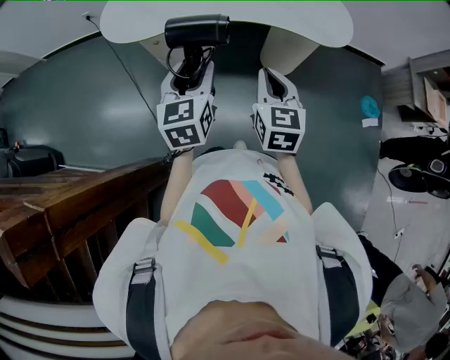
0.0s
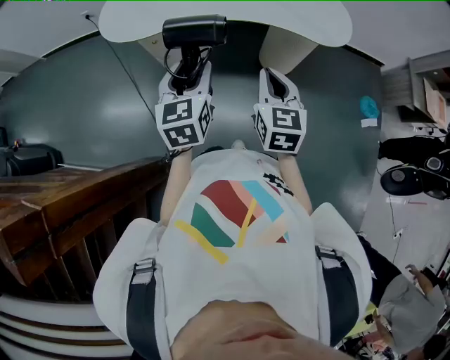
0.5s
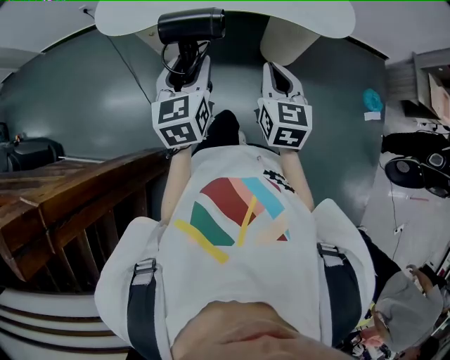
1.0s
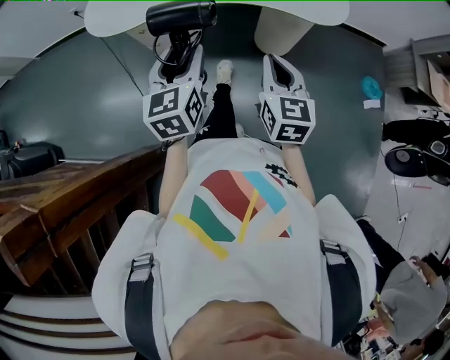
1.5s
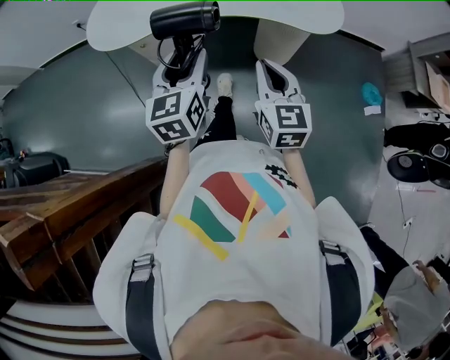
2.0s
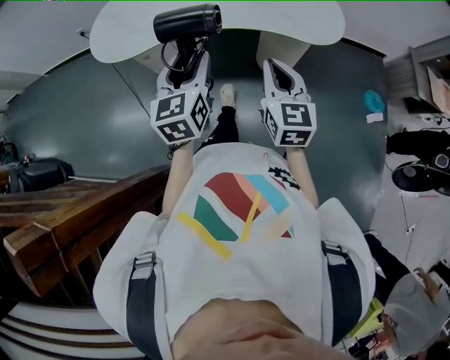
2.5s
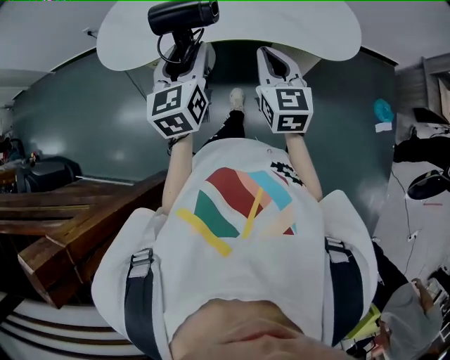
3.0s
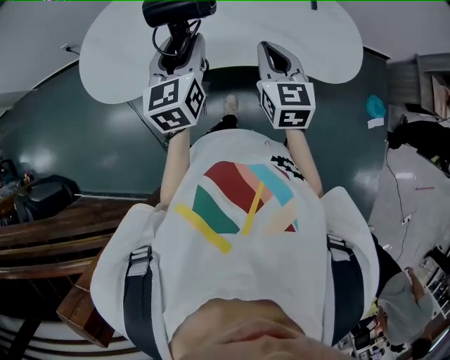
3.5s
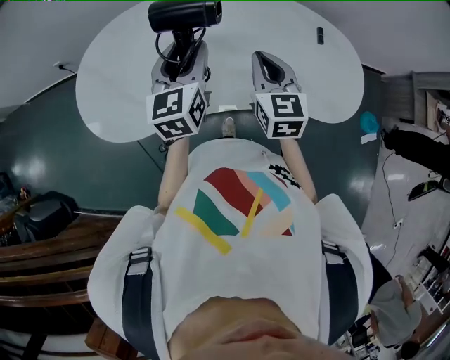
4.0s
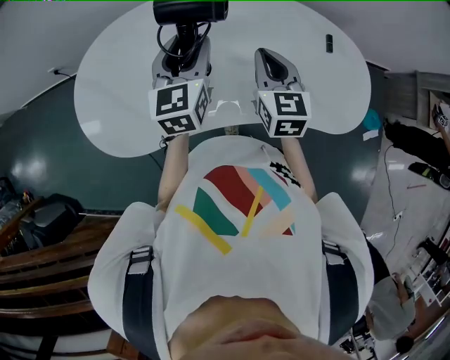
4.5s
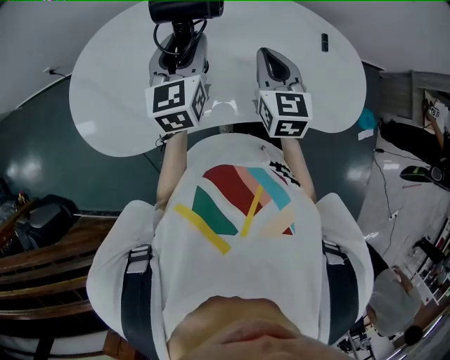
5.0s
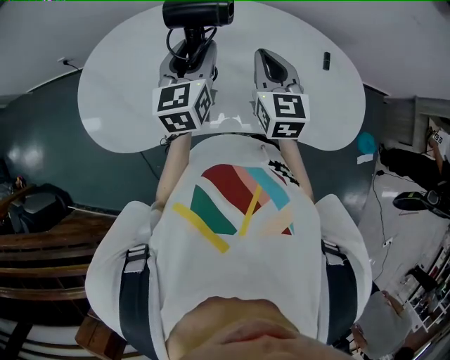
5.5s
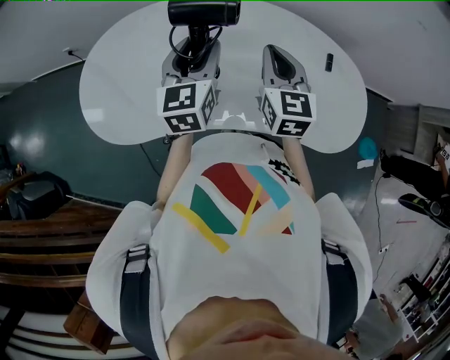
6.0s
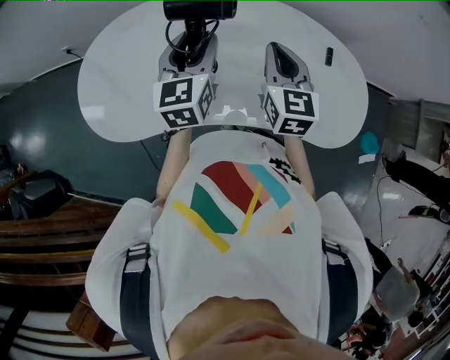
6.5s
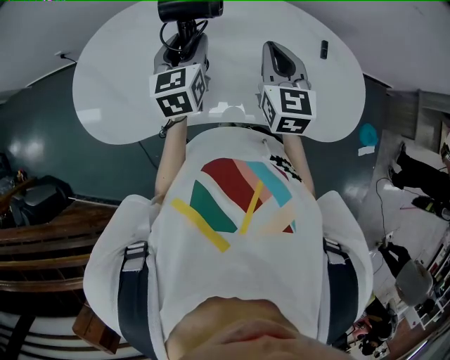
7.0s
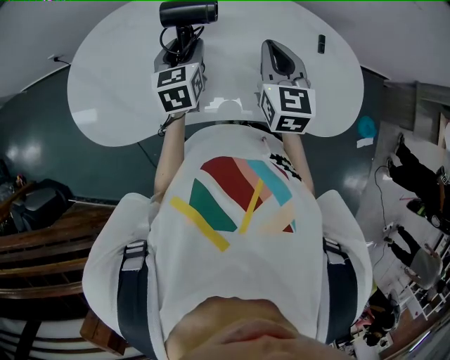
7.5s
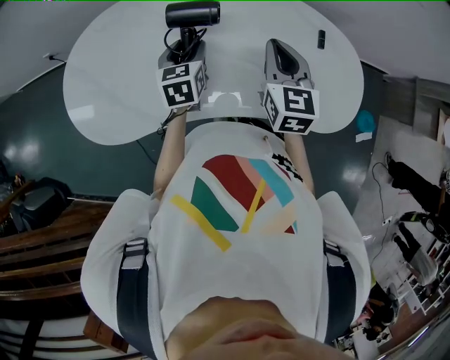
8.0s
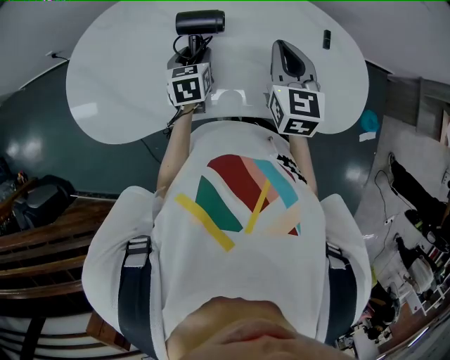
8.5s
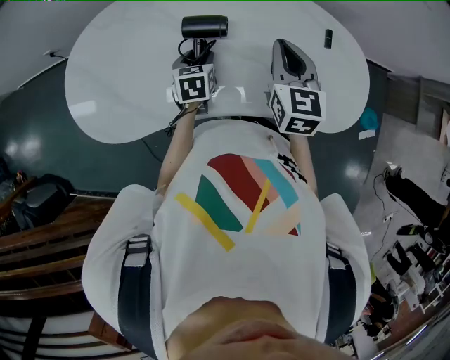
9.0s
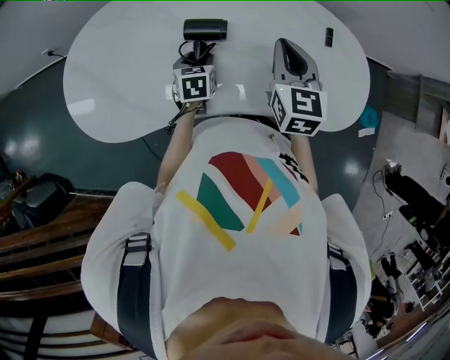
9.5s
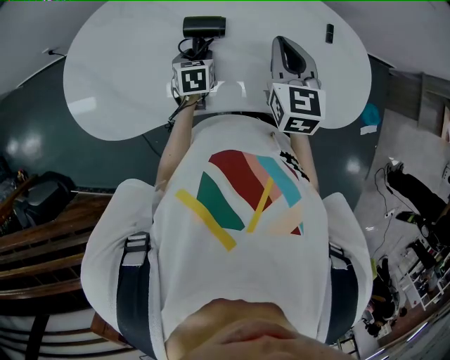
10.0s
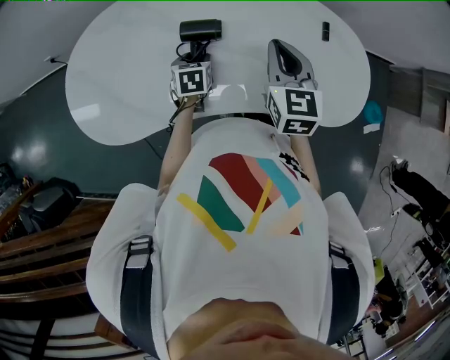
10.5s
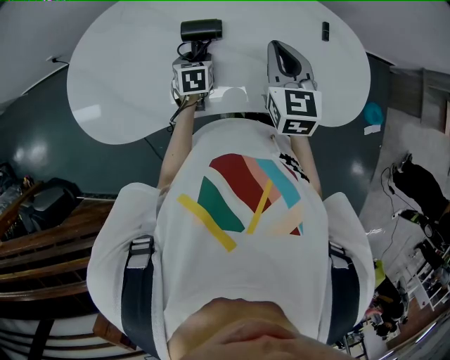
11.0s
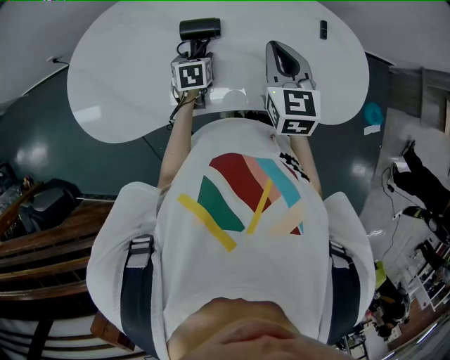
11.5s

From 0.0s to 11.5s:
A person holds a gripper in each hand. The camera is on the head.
From 0.0s to 2.0s: The two grippers go some 5 cm to the right.
From 2.0s to 4.0s: The two grippers travel together, forward, approximately 40 cm.
From 4.0s to 6.0s: The grippers both shift forward by about 5 cm.
From 6.0s to 7.5s: The left gripper moves downward, some 10 cm.
From 7.5s to 9.5s: The left gripper shifts about 15 cm downward, and swivels roughly 20 degrees.
From 9.5s to 11.5s: There are only small adjustments of the grippers.

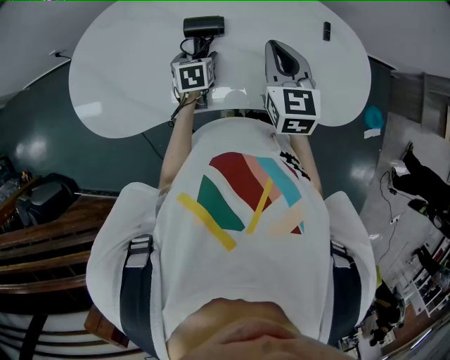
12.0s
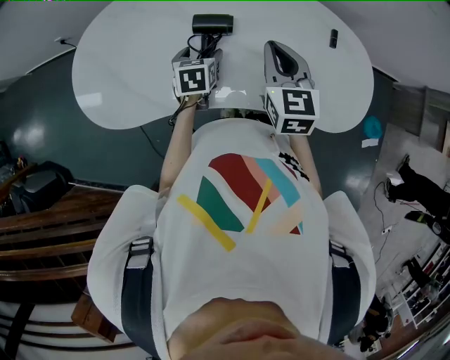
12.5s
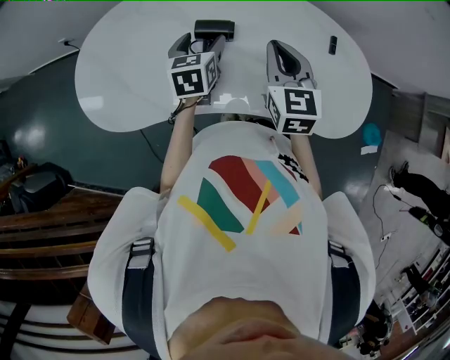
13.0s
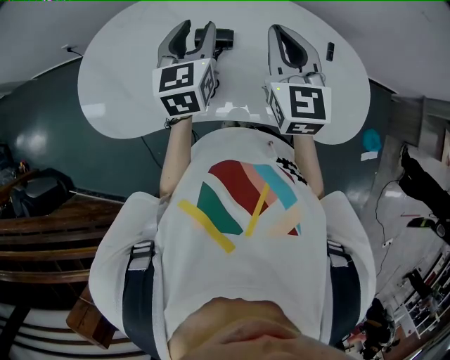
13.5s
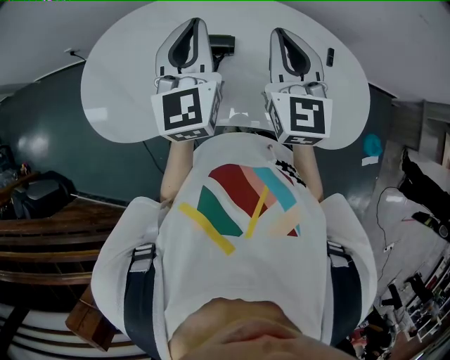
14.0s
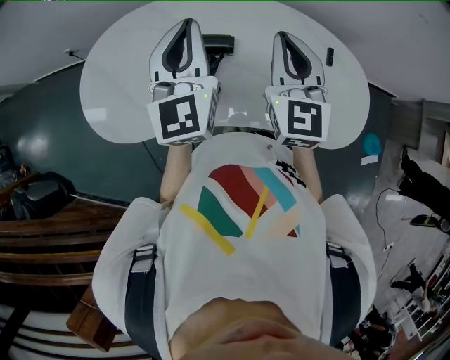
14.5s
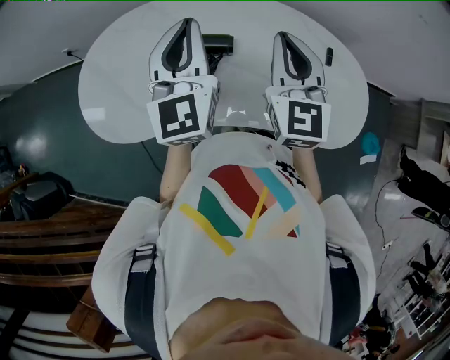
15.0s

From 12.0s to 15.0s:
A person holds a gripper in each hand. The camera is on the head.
From 12.0s to 13.5s: The left gripper shifts some 25 cm upward, tilts its fingers approximately 40 degrees upward, and closes its fingers; the right gripper is displaced upward by approximately 10 cm.
From 13.5s to 15.0s: The left gripper goes roughly 10 cm upward, rotates roughly 20 degrees, and closes.

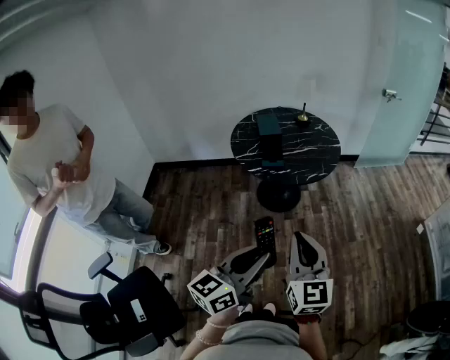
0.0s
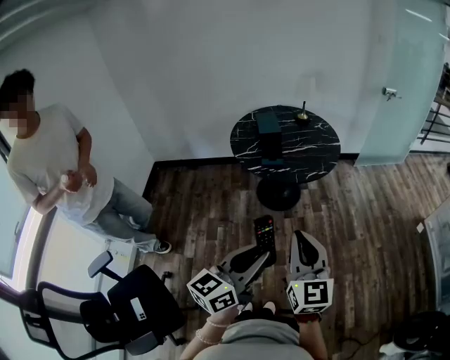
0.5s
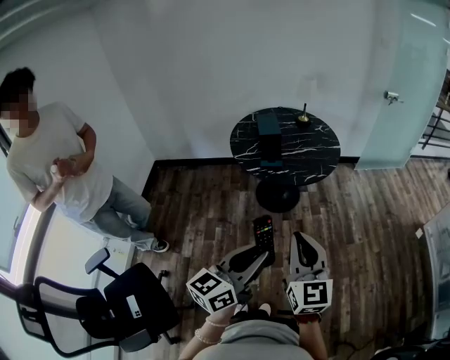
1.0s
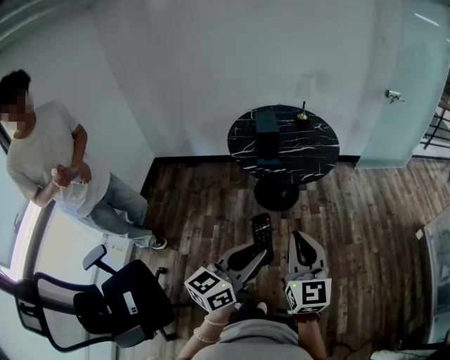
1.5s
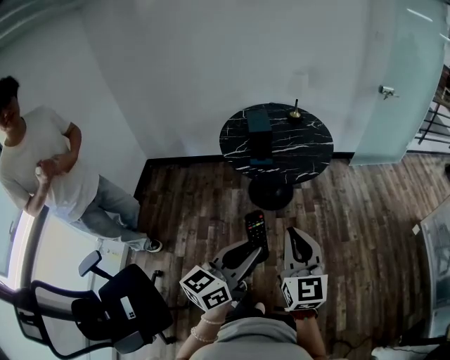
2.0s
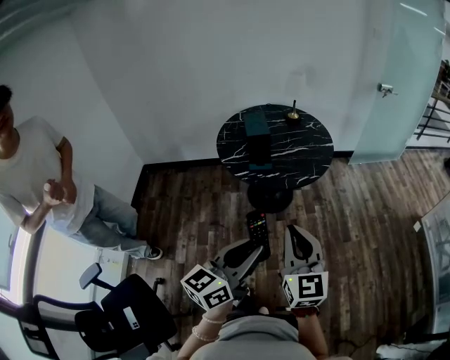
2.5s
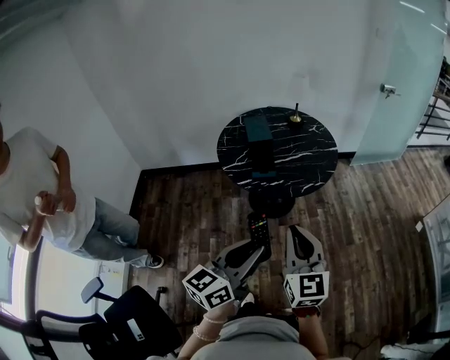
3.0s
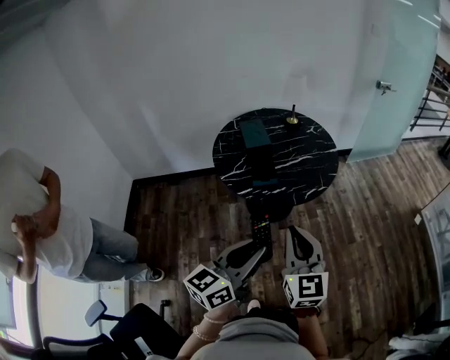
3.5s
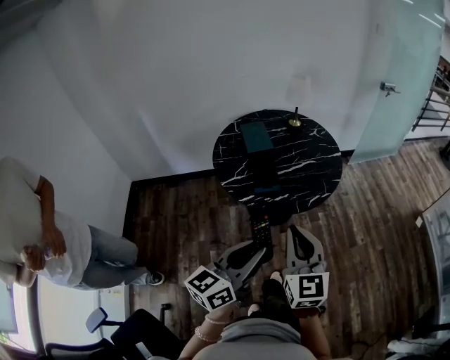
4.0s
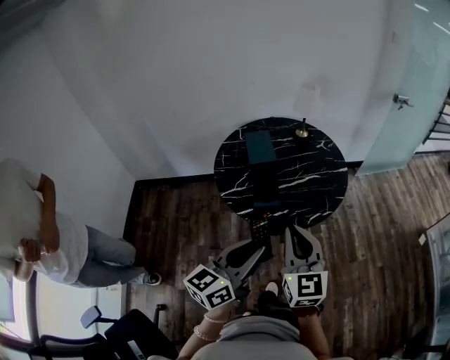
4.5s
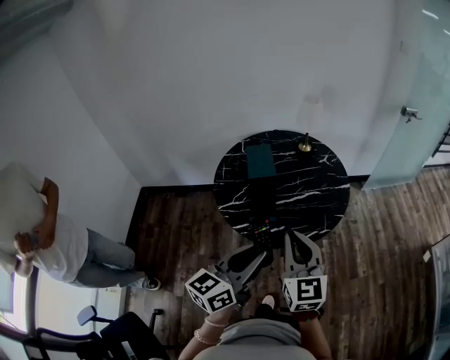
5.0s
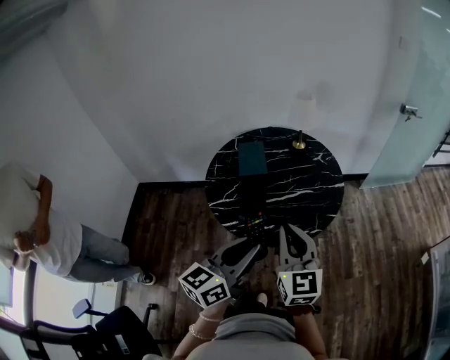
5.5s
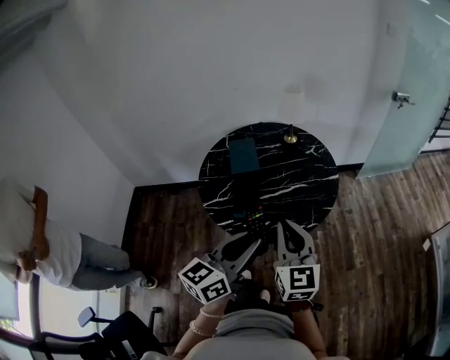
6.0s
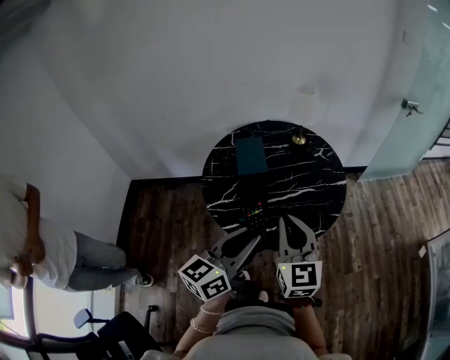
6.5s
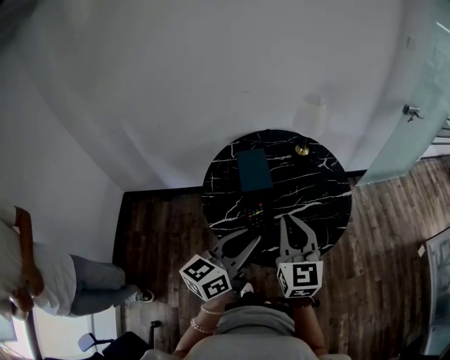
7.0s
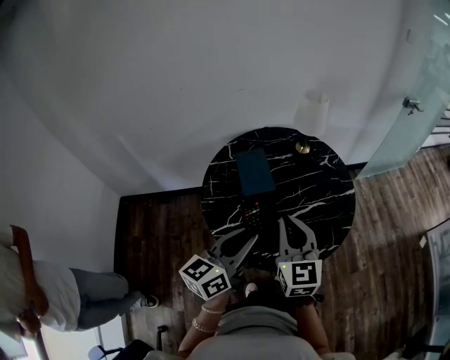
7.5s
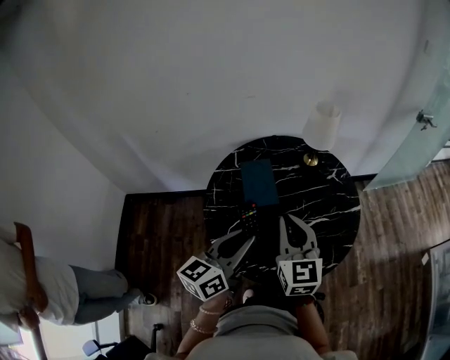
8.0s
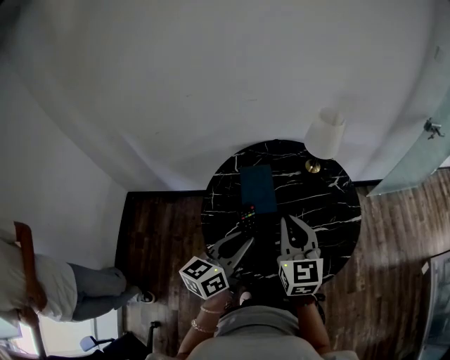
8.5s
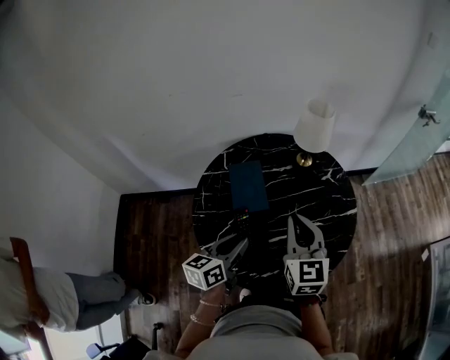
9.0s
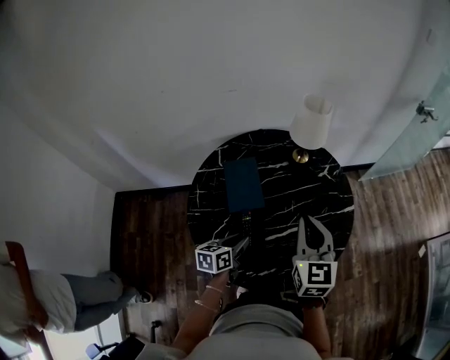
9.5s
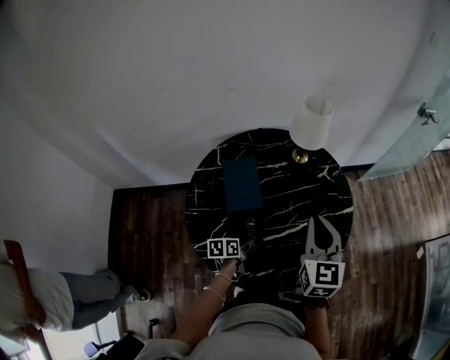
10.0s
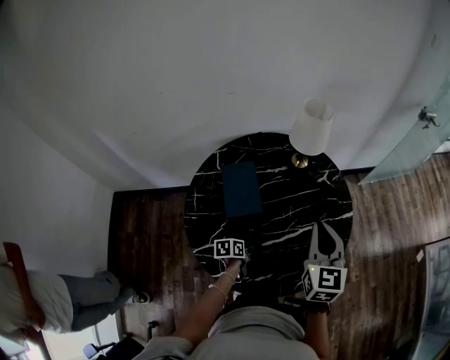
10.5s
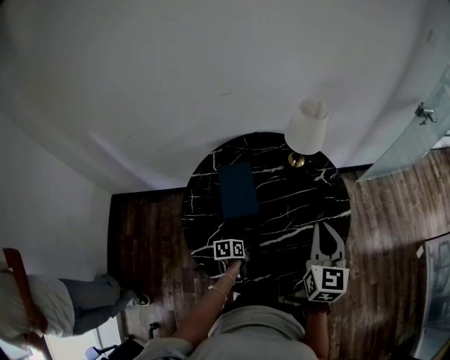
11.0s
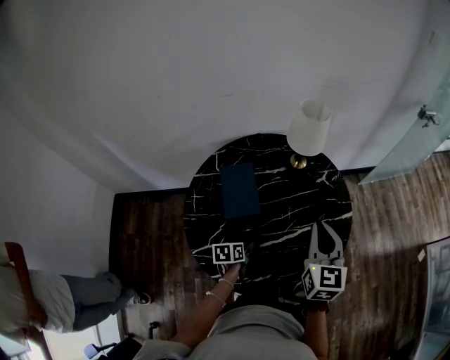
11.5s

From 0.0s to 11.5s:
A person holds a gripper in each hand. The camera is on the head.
From 0.0s to 2.0s: The left gripper moves roughly 5 cm; the right gripper shifts by about 5 cm.
From 2.0s to 4.0s: Both grippers travel together forward and to the left, approximately 25 cm.
From 4.0s to 6.0s: The grippers both shift forward and to the right by approximately 20 cm.
From 6.0s to 7.5s: Both grippers travel together to the left and forward, some 20 cm.
From 7.5s to 9.5s: The left gripper moves downward and forward, roughly 25 cm, and tilts its fingers roughly 30 degrees downward. The right gripper moves forward and to the right, approximately 15 cm.
From 9.5s to 11.5s: The left gripper is displaced downward by about 10 cm; the right gripper changes place by some 5 cm.

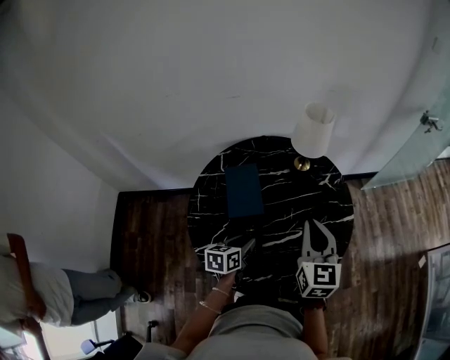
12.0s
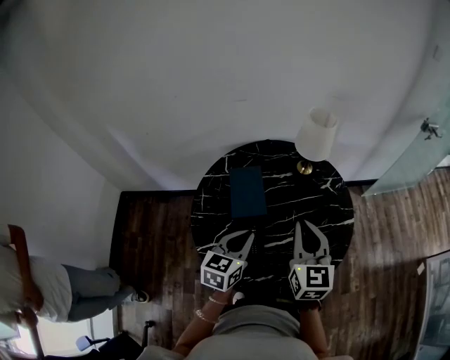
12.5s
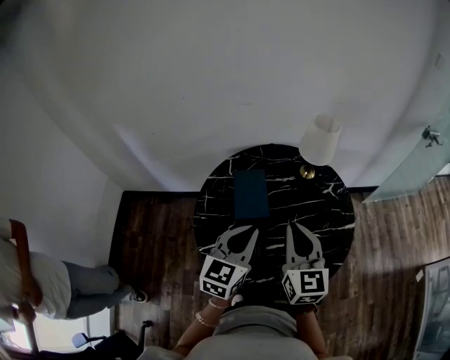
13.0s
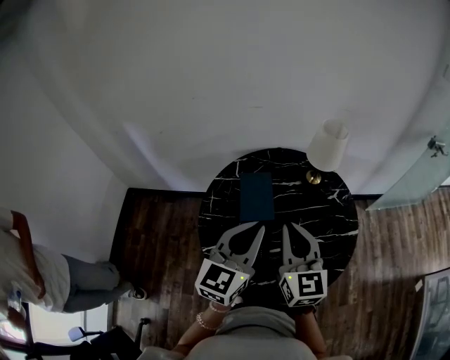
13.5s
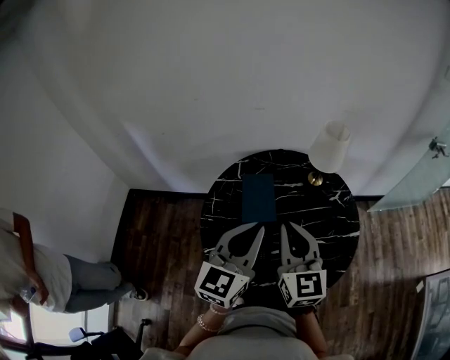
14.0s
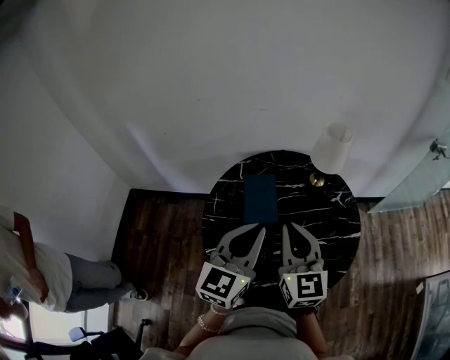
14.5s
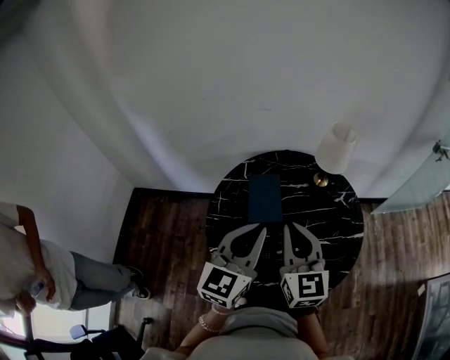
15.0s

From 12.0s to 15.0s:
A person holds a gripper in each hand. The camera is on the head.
From 12.0s to 13.5s: The left gripper moves upward, about 25 cm, tilts its fingers roughly 30 degrees upward, and closes its fingers. Meanwhile the right gripper shifts roughly 10 cm to the left and upward.
From 13.5s to 15.0s: The grippers stay close to where they were, moving slightly.
